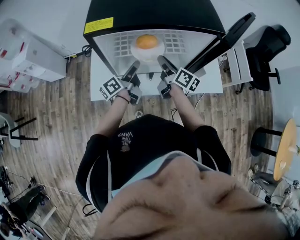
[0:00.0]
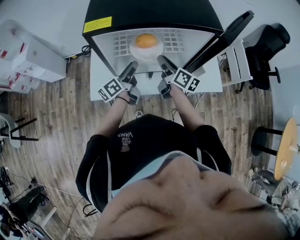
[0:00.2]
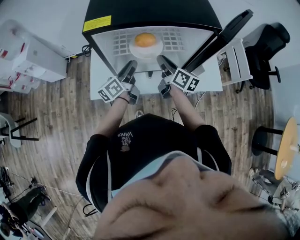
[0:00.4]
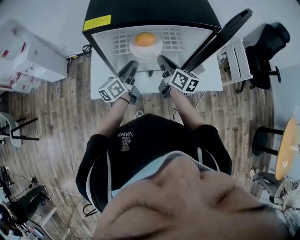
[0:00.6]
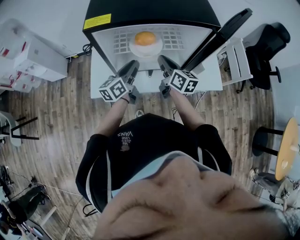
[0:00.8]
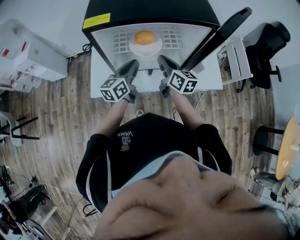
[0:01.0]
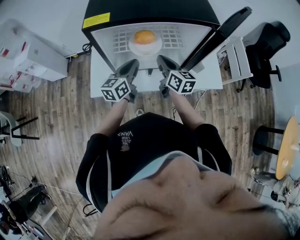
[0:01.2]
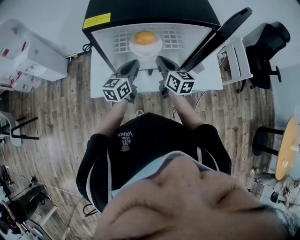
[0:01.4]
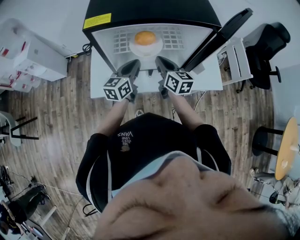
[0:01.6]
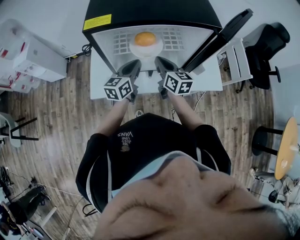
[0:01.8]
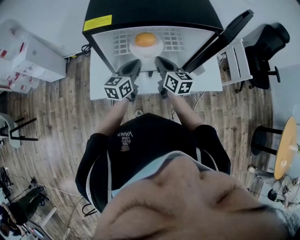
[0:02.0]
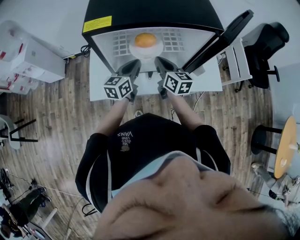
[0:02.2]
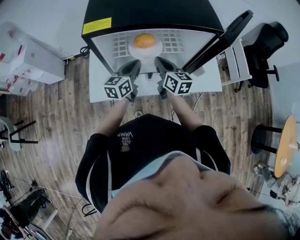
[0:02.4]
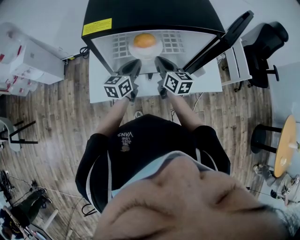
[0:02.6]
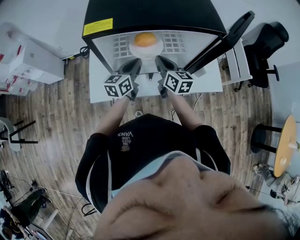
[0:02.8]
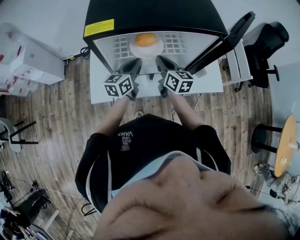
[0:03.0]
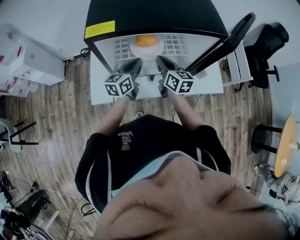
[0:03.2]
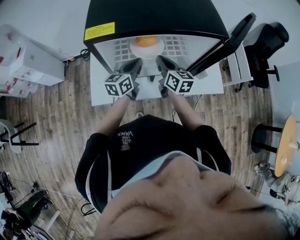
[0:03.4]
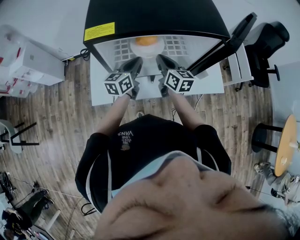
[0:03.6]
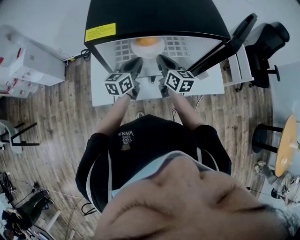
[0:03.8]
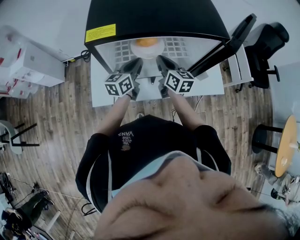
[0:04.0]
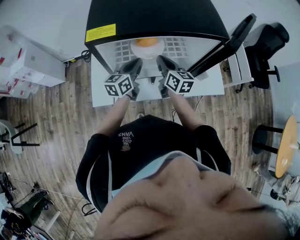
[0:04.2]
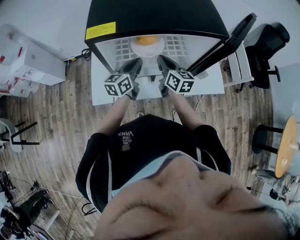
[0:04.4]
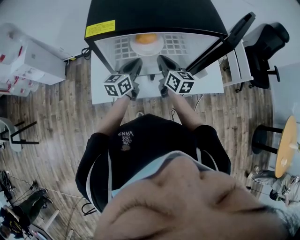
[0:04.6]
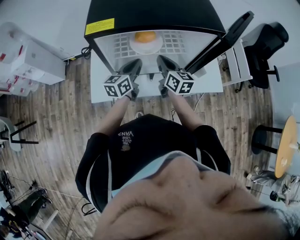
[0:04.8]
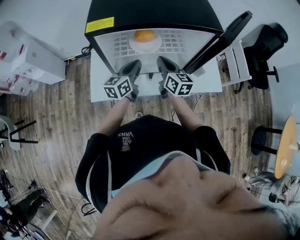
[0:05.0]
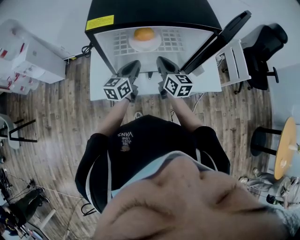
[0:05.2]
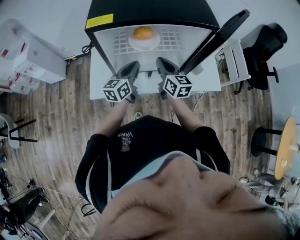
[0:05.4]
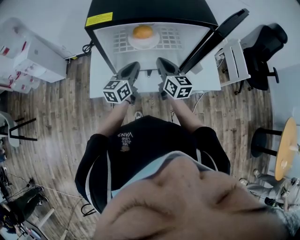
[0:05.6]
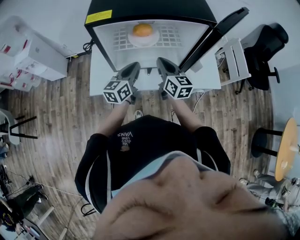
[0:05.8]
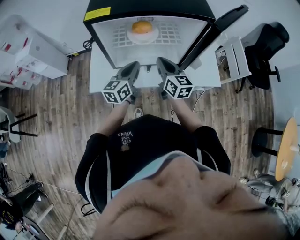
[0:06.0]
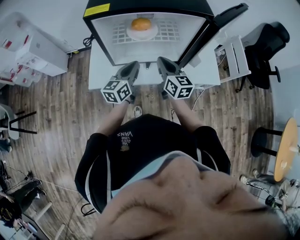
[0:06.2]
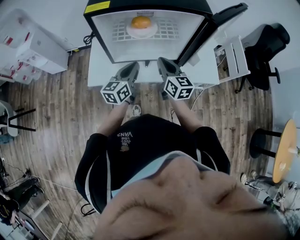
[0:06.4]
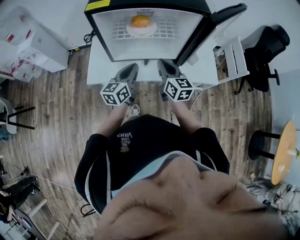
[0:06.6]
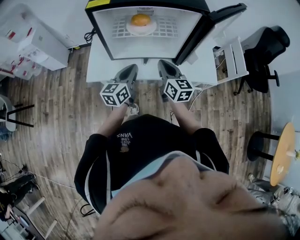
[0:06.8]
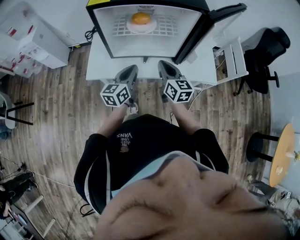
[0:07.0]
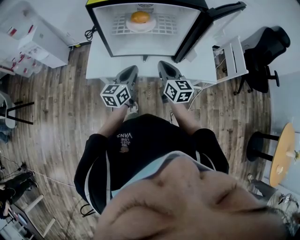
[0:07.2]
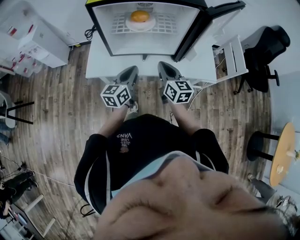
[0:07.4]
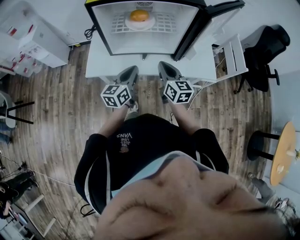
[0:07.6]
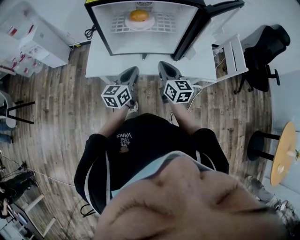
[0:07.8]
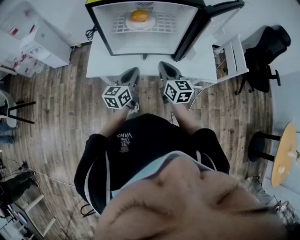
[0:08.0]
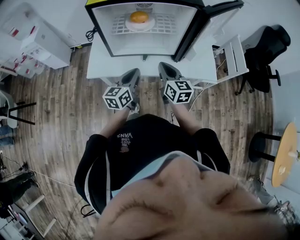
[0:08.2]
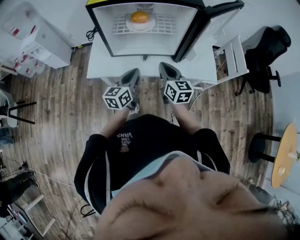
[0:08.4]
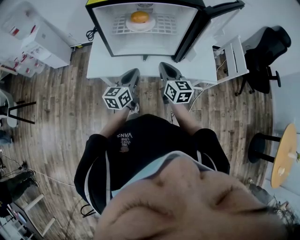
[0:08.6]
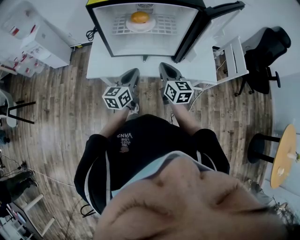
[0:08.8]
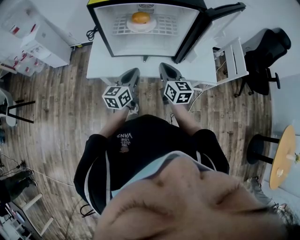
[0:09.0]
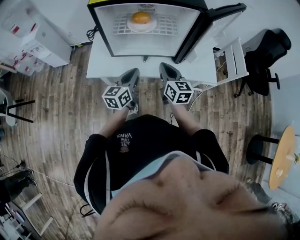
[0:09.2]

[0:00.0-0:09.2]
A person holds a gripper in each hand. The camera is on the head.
0:00.0 to 0:01.6: The right gripper turns by roughly 30 degrees. The left gripper rotates around the line of its fingers by about 50 degrees, clockwise from behind, and closes up.
0:01.6 to 0:04.6: The grippers stay close to where they were, moving slightly.
0:04.6 to 0:06.2: Both grippers travel together backward, approximately 10 cm.
0:06.2 to 0:07.6: The grippers both shift backward by about 10 cm.
0:07.6 to 0:09.2: Both grippers stay about where they are.

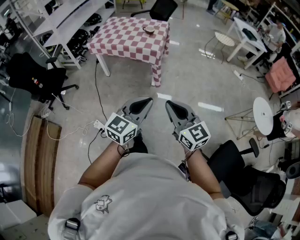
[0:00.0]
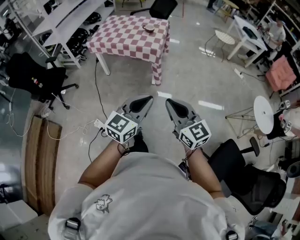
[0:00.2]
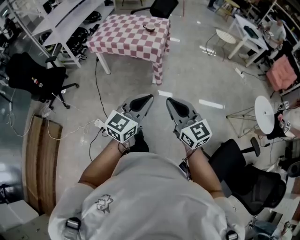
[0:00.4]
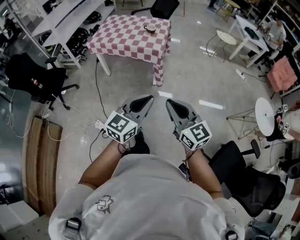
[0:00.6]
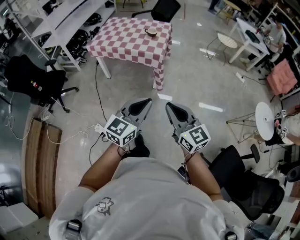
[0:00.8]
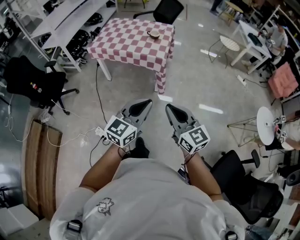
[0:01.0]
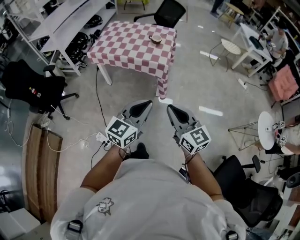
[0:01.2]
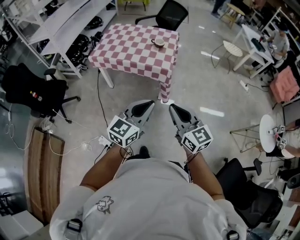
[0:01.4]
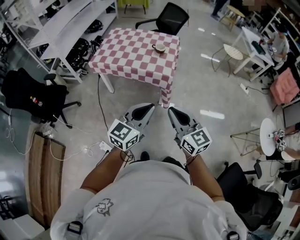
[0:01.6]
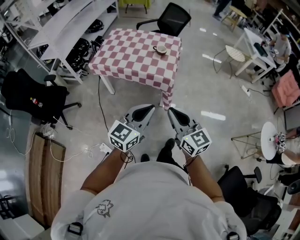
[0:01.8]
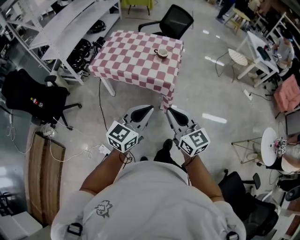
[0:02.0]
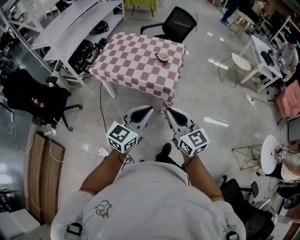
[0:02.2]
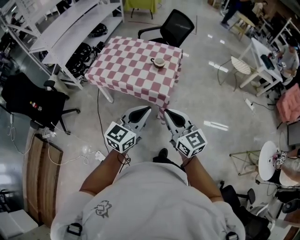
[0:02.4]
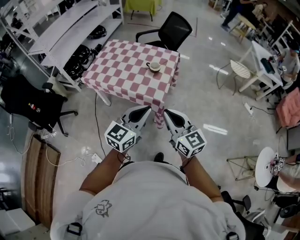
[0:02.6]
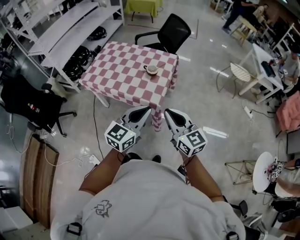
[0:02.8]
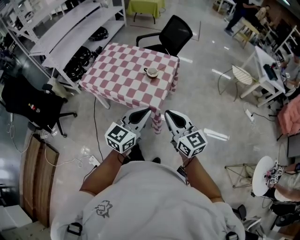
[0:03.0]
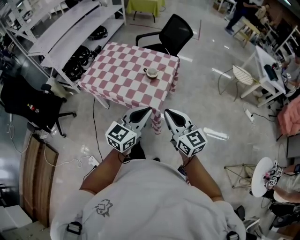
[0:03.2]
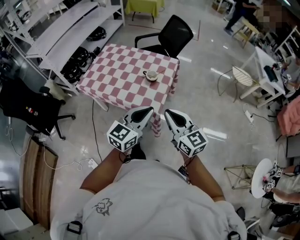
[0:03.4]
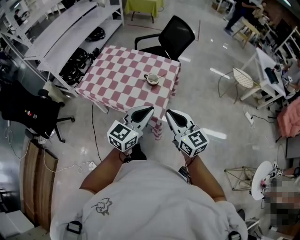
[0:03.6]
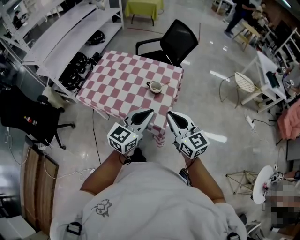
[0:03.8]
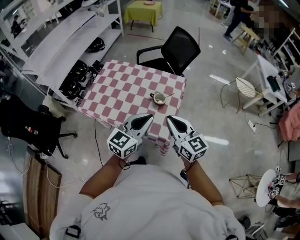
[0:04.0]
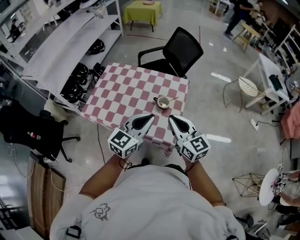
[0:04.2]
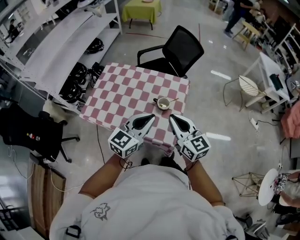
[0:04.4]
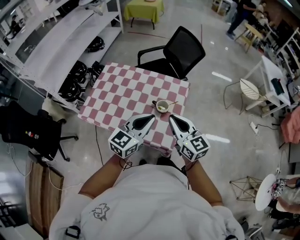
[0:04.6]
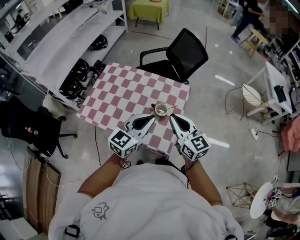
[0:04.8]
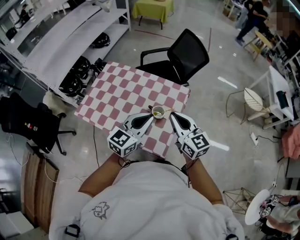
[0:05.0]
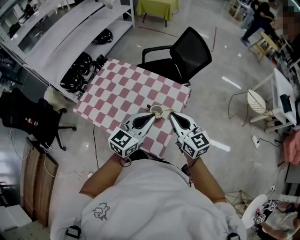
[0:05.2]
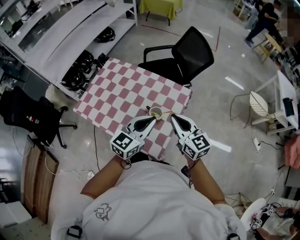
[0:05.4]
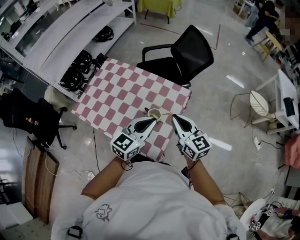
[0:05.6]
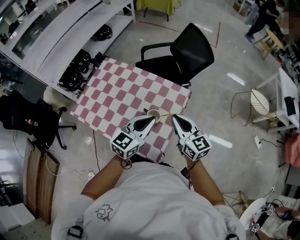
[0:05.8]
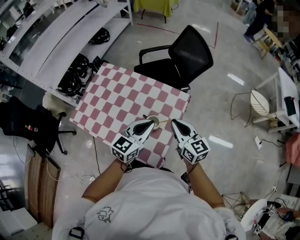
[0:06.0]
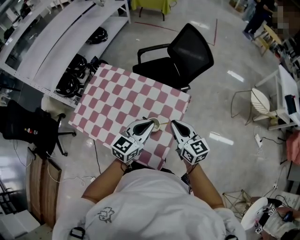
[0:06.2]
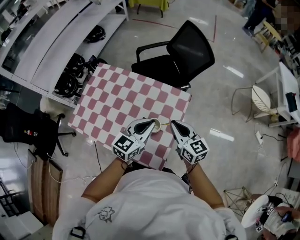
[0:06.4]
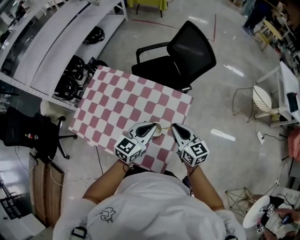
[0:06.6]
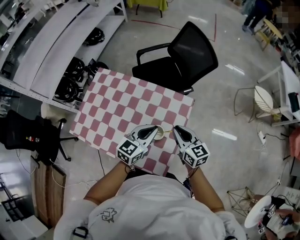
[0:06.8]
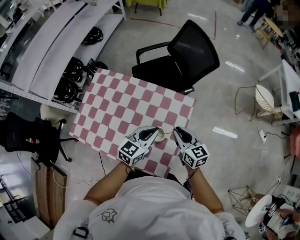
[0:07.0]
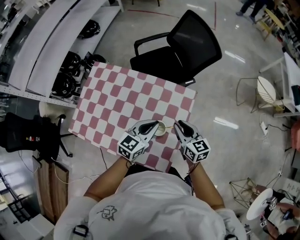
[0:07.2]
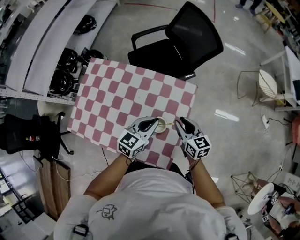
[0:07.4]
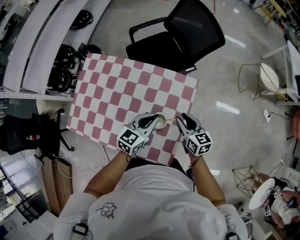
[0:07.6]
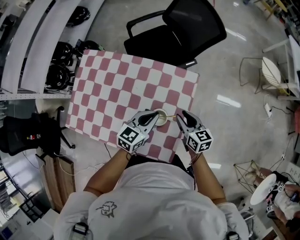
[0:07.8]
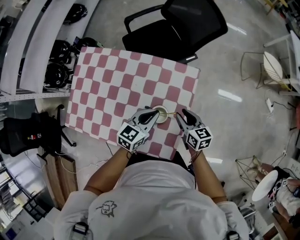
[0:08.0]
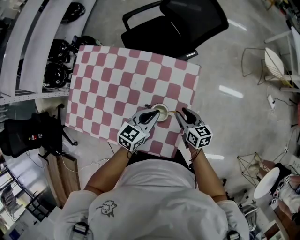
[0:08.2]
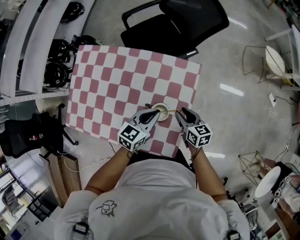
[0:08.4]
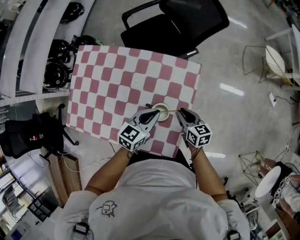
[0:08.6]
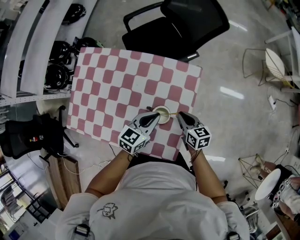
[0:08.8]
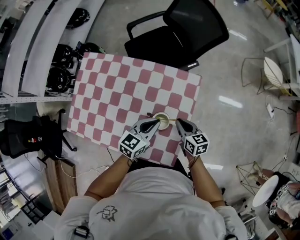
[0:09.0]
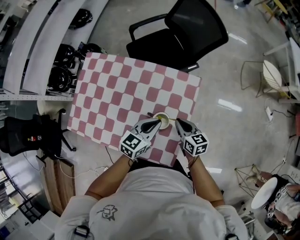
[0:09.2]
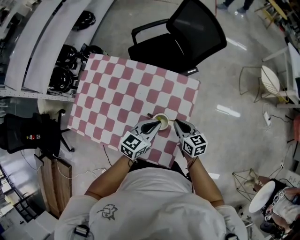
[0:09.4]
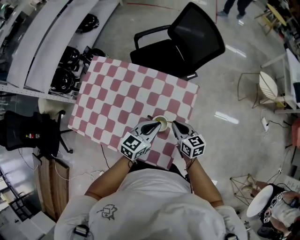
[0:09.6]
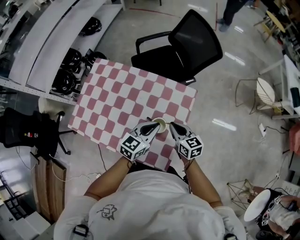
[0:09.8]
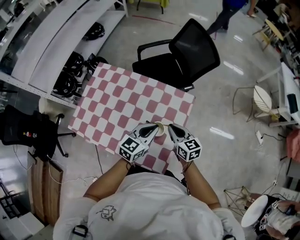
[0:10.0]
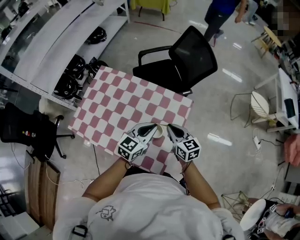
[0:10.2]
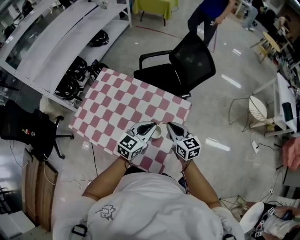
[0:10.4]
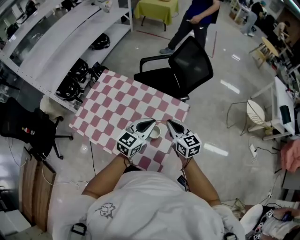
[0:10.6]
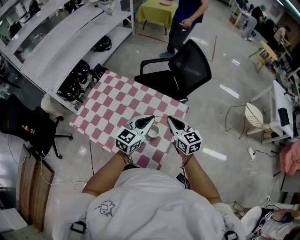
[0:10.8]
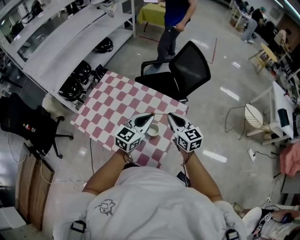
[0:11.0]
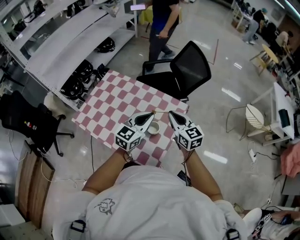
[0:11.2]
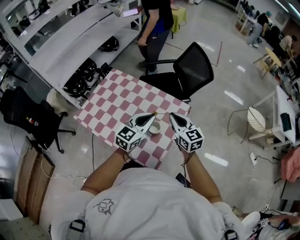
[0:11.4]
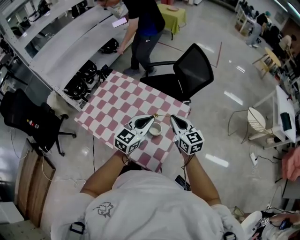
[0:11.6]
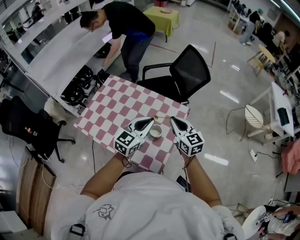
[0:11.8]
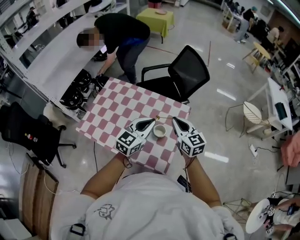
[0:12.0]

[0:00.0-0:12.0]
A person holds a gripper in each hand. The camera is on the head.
0:00.0 to 0:01.6: The grippers both shift forward and to the left by roughly 30 cm.
0:01.6 to 0:03.0: The grippers both shift forward and to the right by roughly 30 cm.
0:03.0 to 0:04.4: The right gripper shifts approximately 25 cm forward. The left gripper shifts about 30 cm forward and to the left.
0:04.4 to 0:06.0: The two grippers go some 20 cm forward, to the right and downward.
0:06.0 to 0:07.6: Both grippers move downward and forward, approximately 15 cm. The right gripper changes its angle by about 20 degrees, and opens up.
0:07.6 to 0:09.0: The right gripper heads downward, covering some 5 cm, and closes its fingers.
0:09.0 to 0:10.4: Both grippers travel together upward, some 15 cm. The right gripper changes its angle by approximately 30 degrees.
0:10.4 to 0:12.0: The two grippers go approximately 10 cm upward and backward.

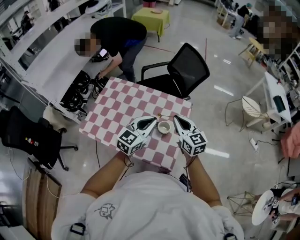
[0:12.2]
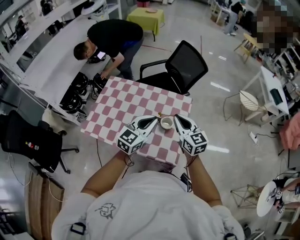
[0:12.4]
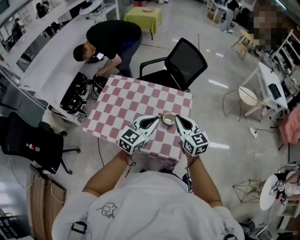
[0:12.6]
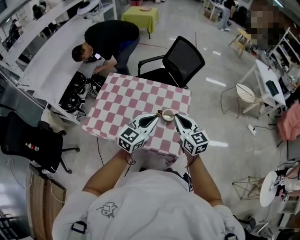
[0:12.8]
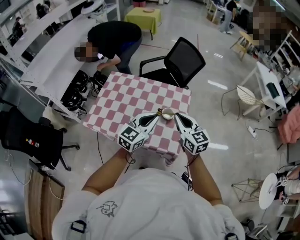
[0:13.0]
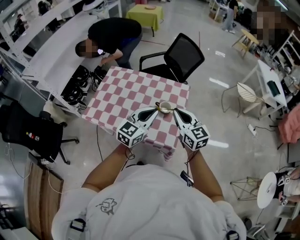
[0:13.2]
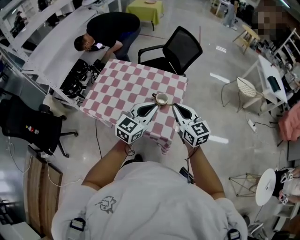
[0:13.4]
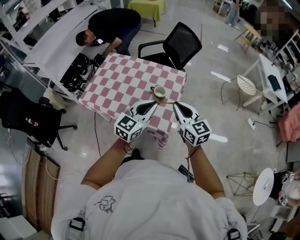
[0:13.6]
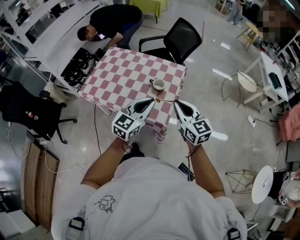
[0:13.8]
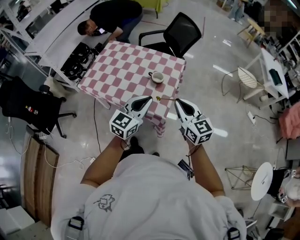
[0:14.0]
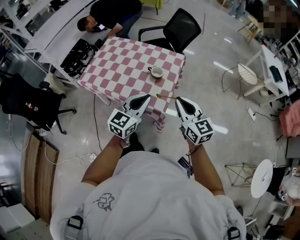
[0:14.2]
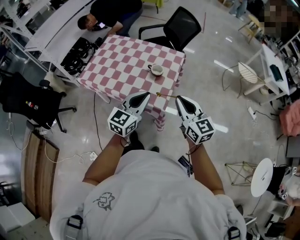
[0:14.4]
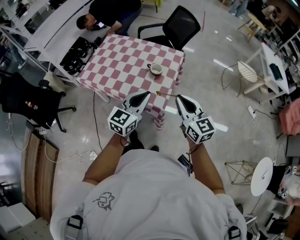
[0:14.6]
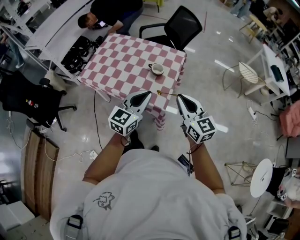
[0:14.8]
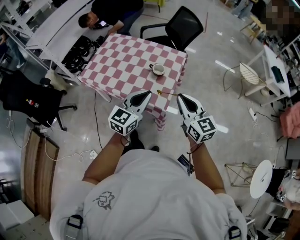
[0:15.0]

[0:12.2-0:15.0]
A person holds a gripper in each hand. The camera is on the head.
0:12.2 to 0:13.6: The two grippers go some 20 cm backward.
0:13.6 to 0:15.0: The two grippers go roughly 10 cm backward.
